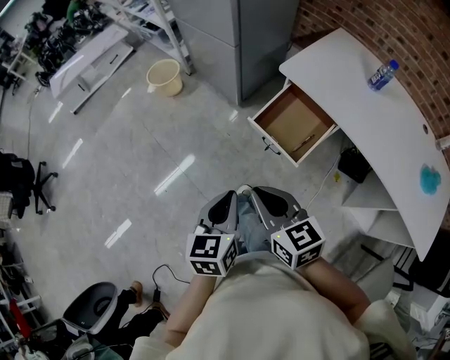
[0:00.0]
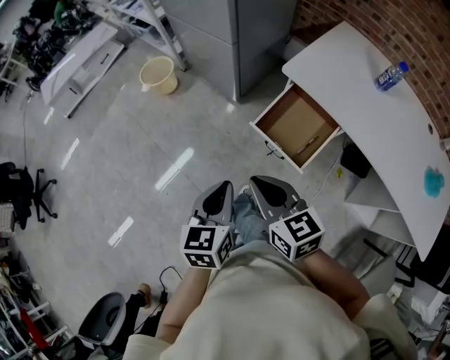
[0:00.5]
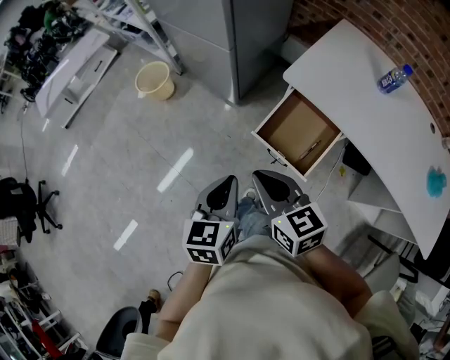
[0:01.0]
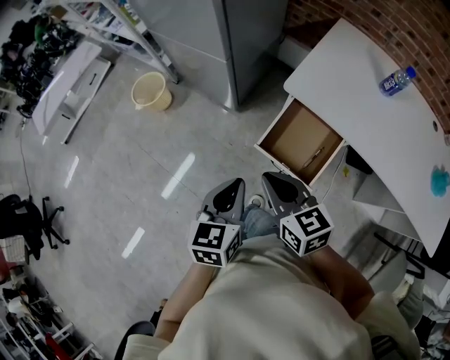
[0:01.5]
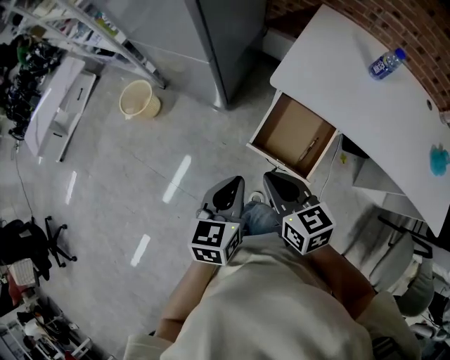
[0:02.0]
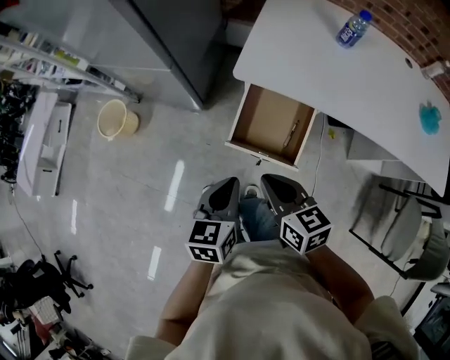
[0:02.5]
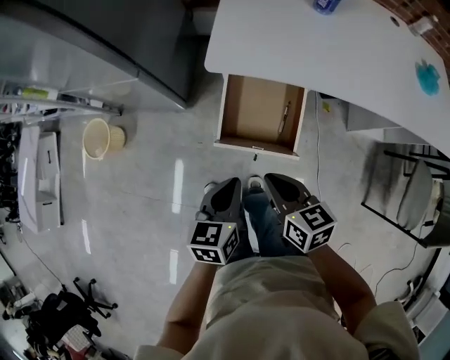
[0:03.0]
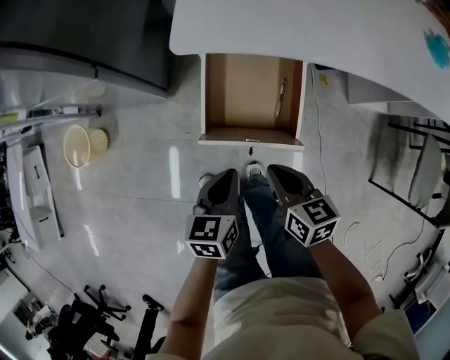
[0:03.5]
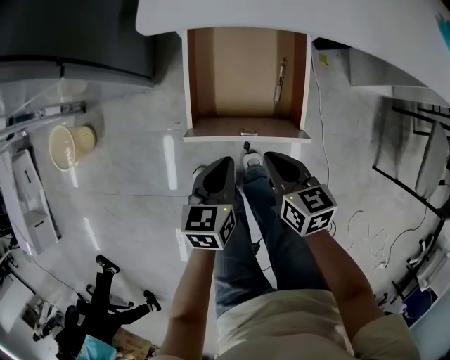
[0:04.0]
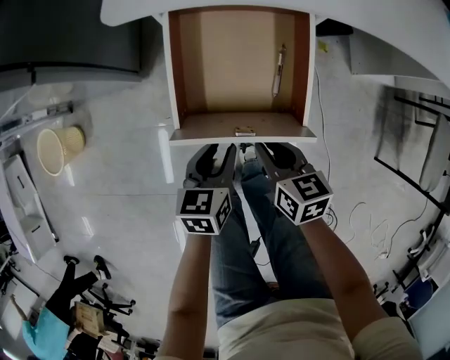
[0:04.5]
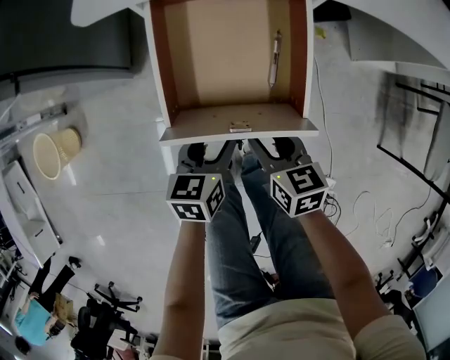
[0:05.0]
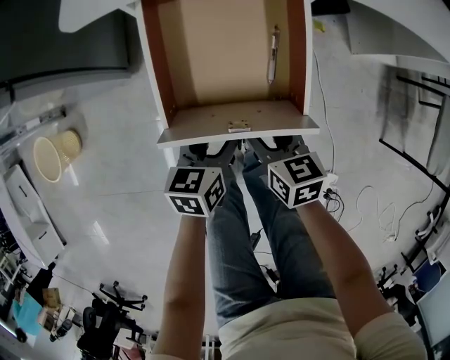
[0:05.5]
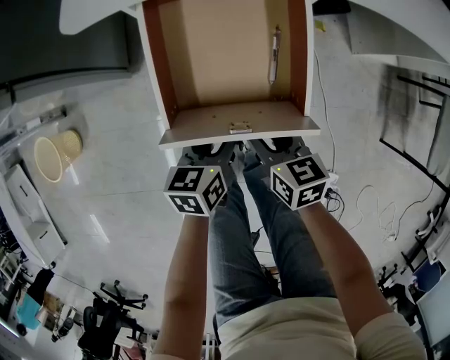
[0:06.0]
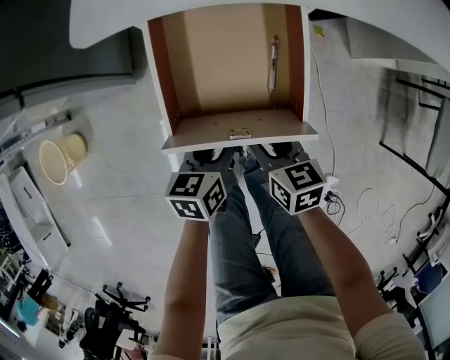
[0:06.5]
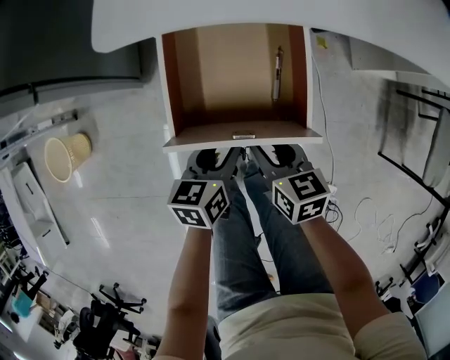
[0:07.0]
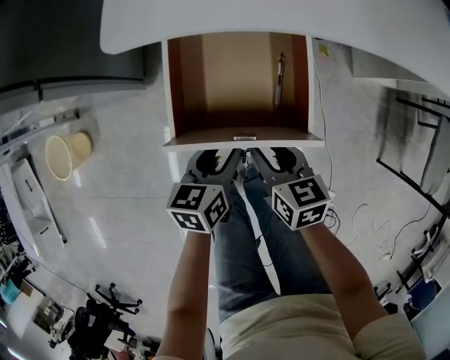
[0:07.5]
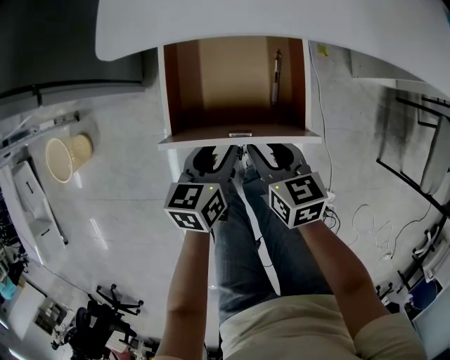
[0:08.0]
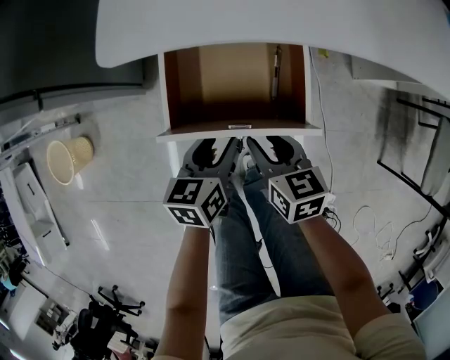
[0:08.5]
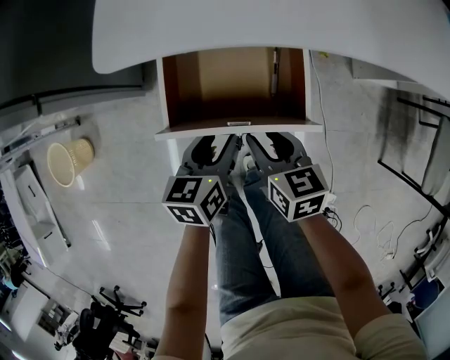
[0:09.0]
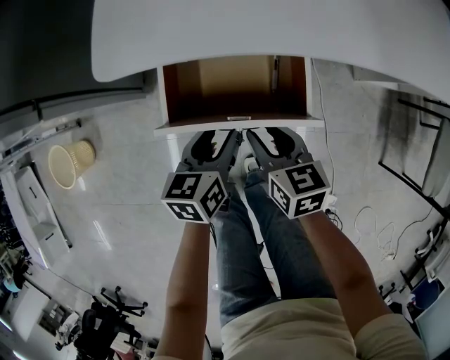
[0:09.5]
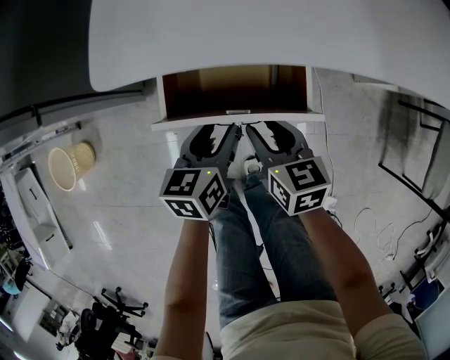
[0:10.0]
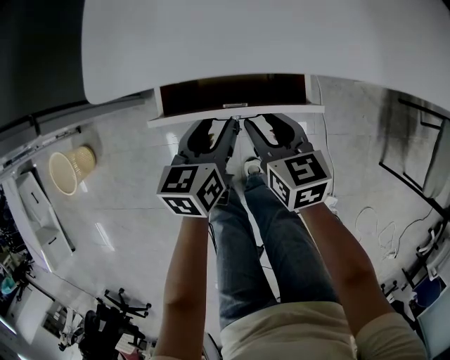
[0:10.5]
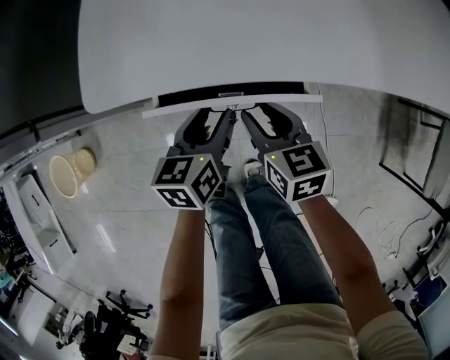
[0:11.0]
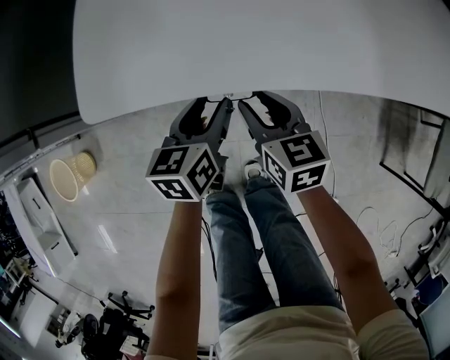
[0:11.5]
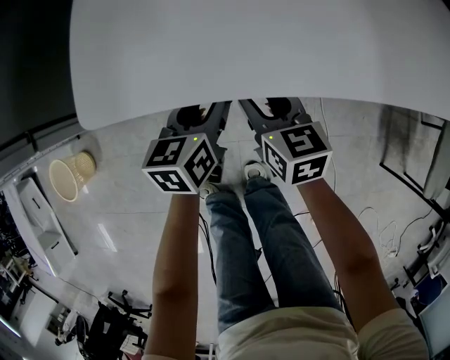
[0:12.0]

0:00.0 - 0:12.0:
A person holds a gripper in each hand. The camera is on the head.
0:00.0 - 0:02.0: The grippers both shift forward by some 25 cm. The left gripper rotates some 20 degrees.
0:02.0 - 0:04.0: Both grippers travel together downward, approximately 30 cm. The left gripper rotates about 30 degrees, while the right gripper changes its angle by some 40 degrees.
0:04.0 - 0:06.0: The two grippers go roughly 10 cm downward. The right gripper opens, while the left gripper opens up.
0:06.0 - 0:08.0: Both grippers move upward, roughly 5 cm.
0:08.0 - 0:10.0: Both grippers move forward, approximately 10 cm.
0:10.0 - 0:12.0: The two grippers go some 10 cm forward.

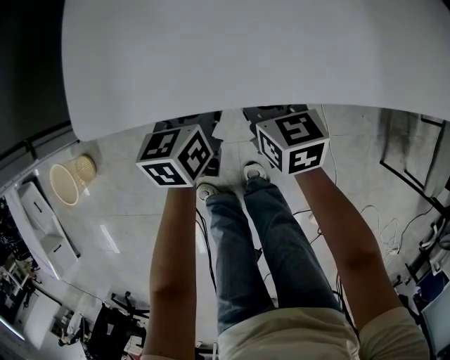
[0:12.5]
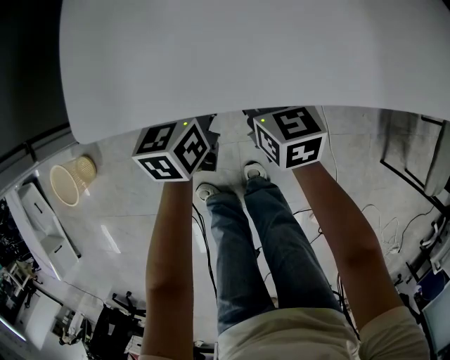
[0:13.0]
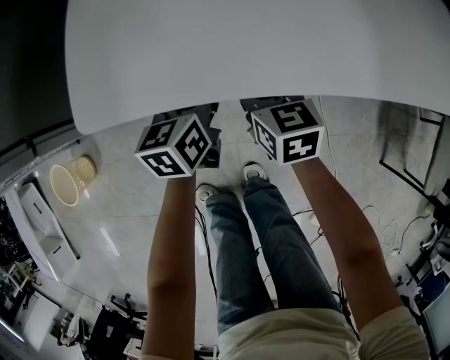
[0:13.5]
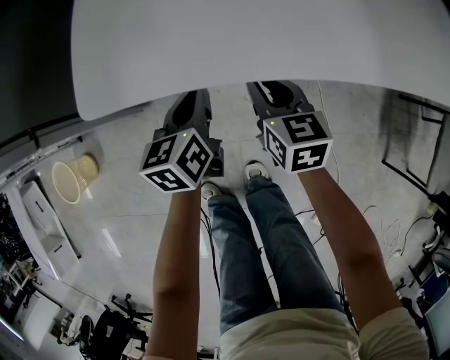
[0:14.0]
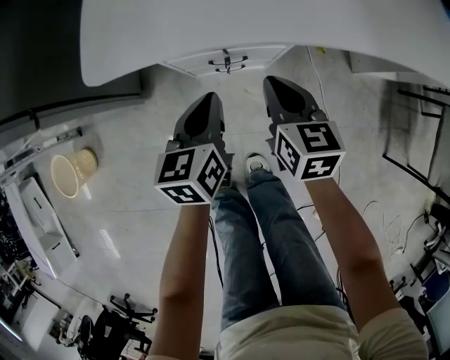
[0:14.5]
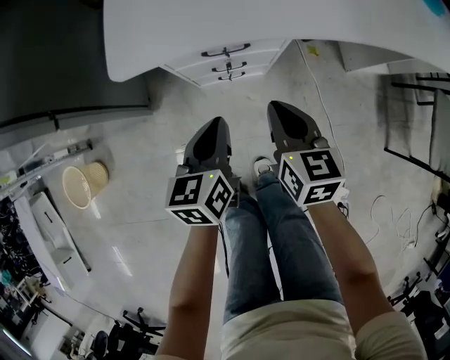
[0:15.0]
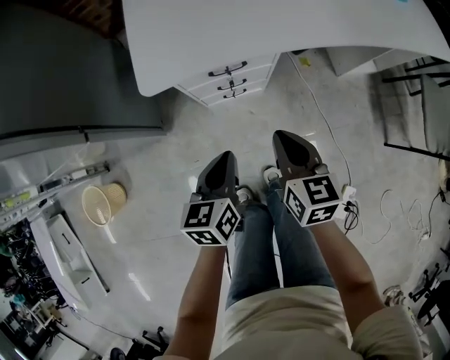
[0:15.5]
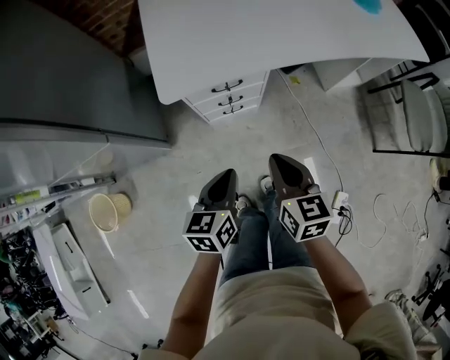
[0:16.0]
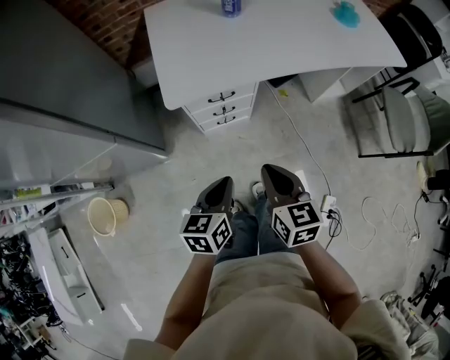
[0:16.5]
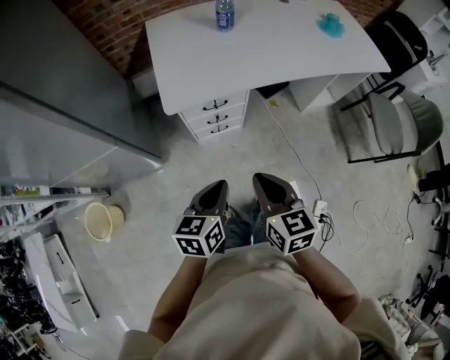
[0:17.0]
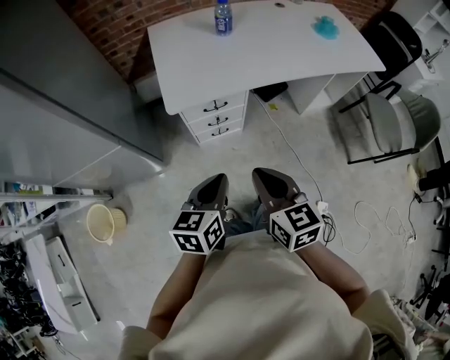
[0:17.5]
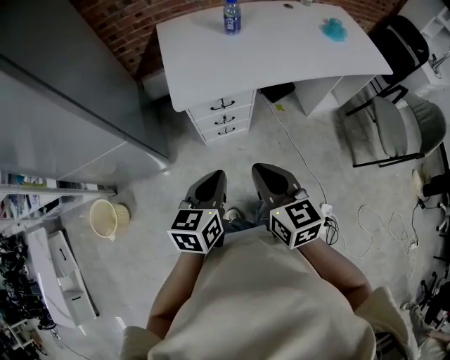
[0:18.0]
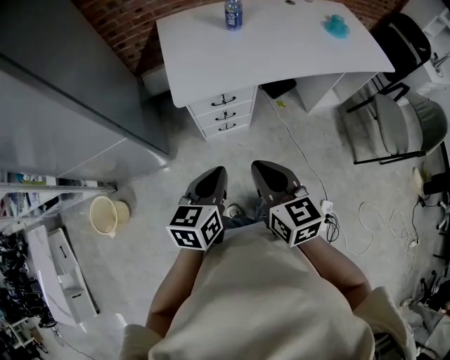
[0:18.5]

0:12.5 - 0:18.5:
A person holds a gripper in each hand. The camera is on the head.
0:12.5 - 0:14.5: The two grippers go about 10 cm backward. The left gripper closes, while the right gripper closes.
0:14.5 - 0:16.5: The grippers both shift upward and backward by roughly 35 cm.
0:16.5 - 0:18.5: Both grippers move upward, some 10 cm.

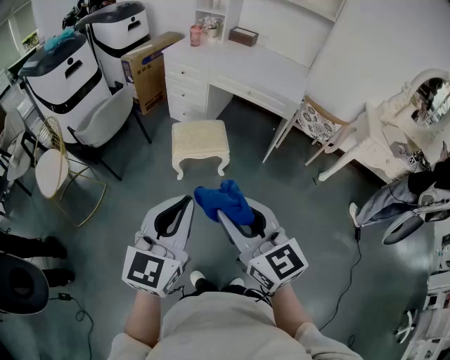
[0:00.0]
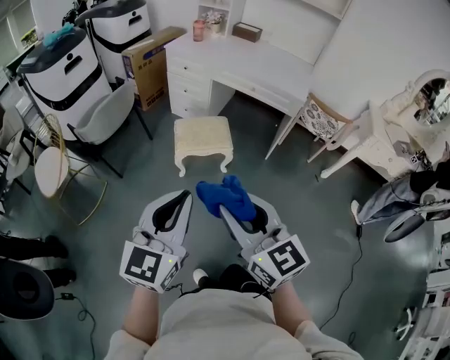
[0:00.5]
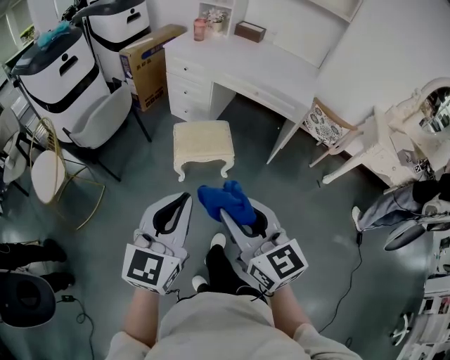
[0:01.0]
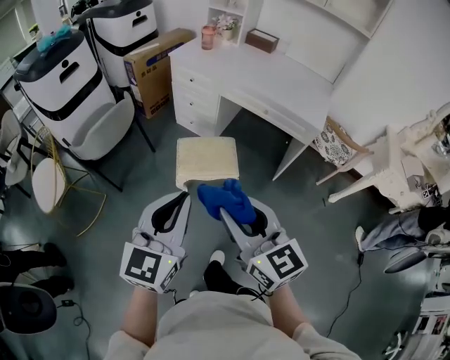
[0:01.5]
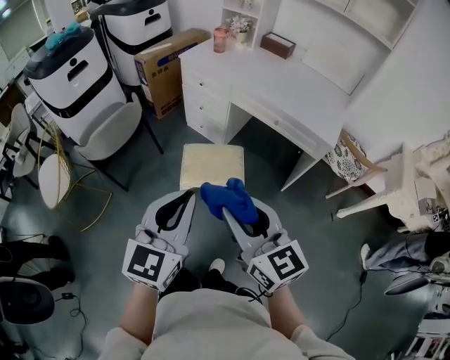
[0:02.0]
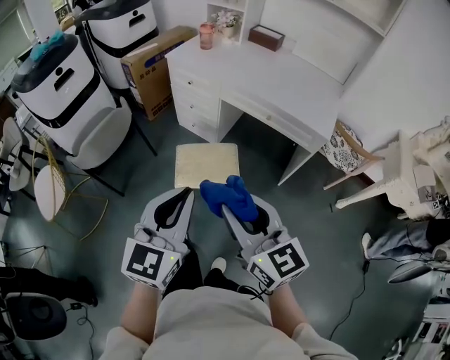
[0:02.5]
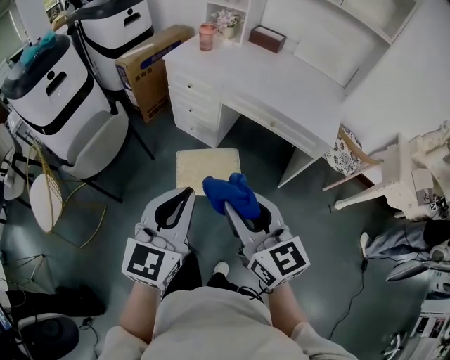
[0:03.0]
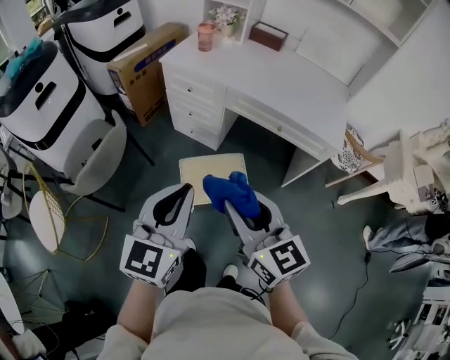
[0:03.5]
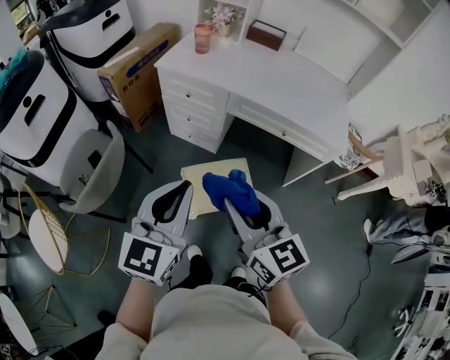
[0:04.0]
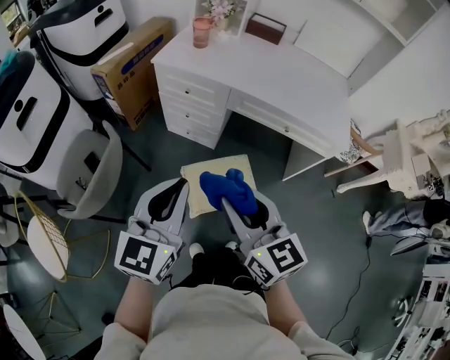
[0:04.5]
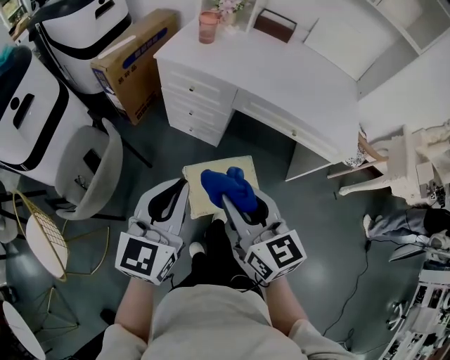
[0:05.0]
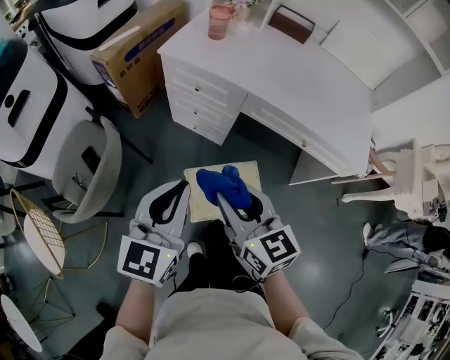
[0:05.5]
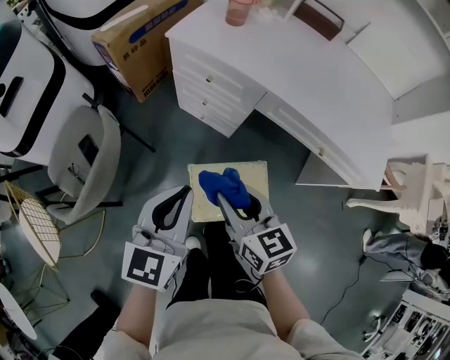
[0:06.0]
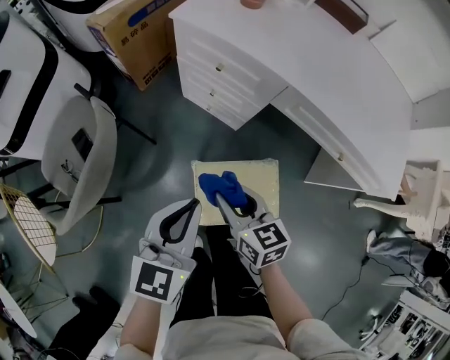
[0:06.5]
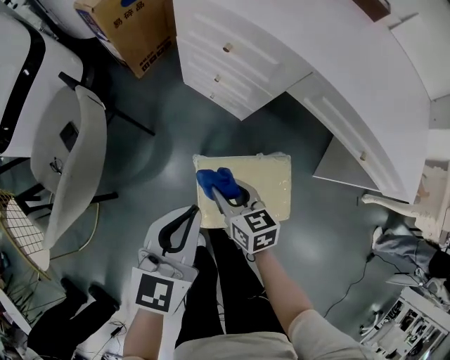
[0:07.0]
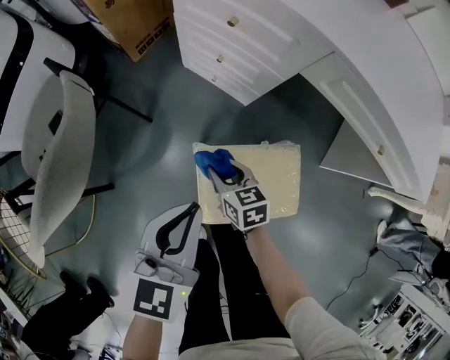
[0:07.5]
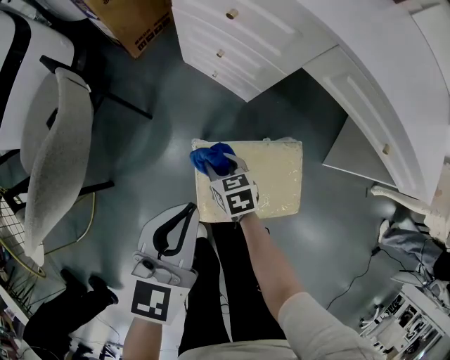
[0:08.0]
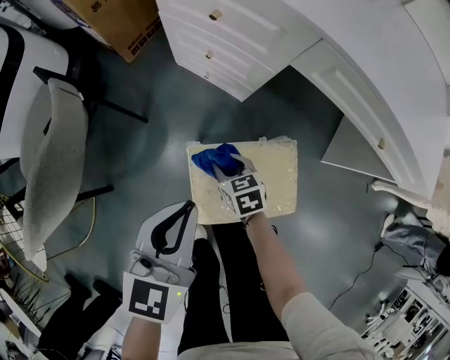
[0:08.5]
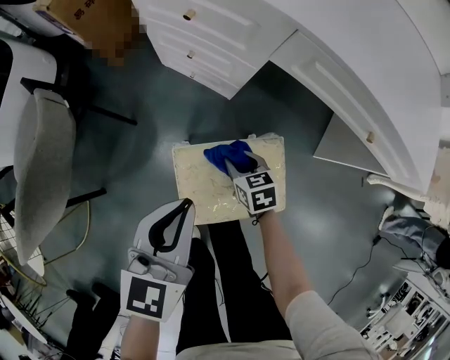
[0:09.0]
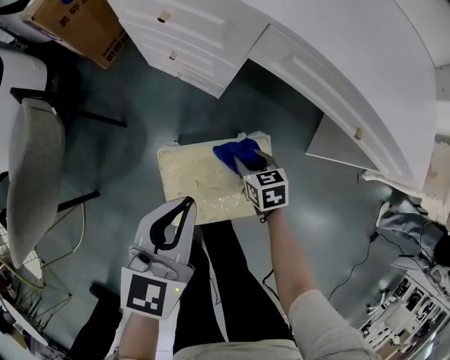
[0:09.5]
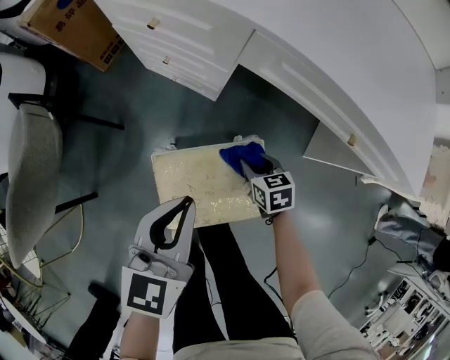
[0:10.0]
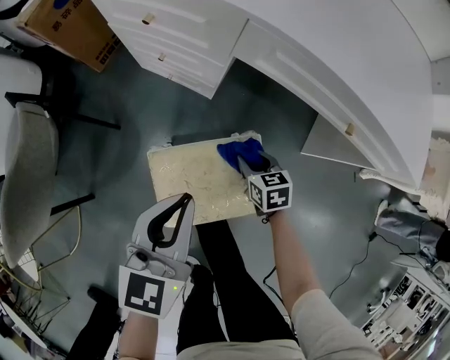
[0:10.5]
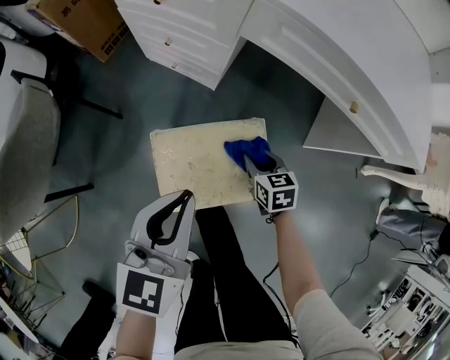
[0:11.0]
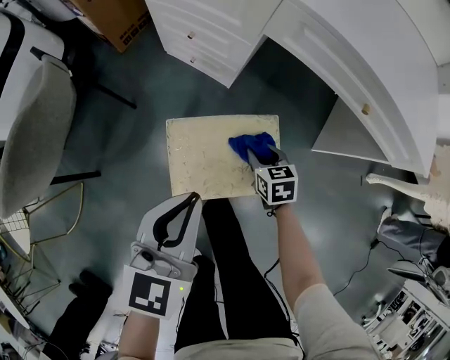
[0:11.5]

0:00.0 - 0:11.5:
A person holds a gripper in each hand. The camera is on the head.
0:00.0 - 0:02.0: Both grippers move forward, approximately 30 cm.
0:02.0 - 0:04.0: The two grippers go some 25 cm forward and to the left.
0:04.0 - 0:06.0: The grippers both shift forward and downward by roughly 25 cm.
0:06.0 - 0:07.5: The right gripper moves downward, some 35 cm, and changes its angle by some 20 degrees; the left gripper goes about 20 cm downward.
0:07.5 - 0:09.5: The left gripper shifts some 10 cm to the right. Meanwhile the right gripper heads to the right, covering approximately 20 cm.
0:09.5 - 0:11.5: Both grippers travel together backward, some 10 cm.
